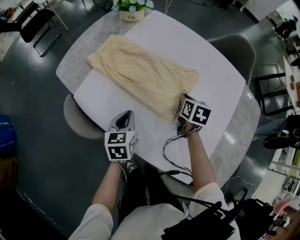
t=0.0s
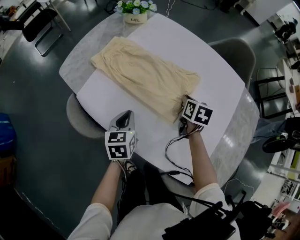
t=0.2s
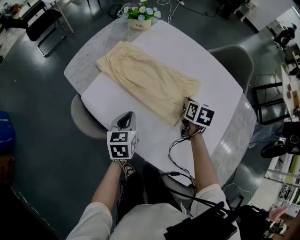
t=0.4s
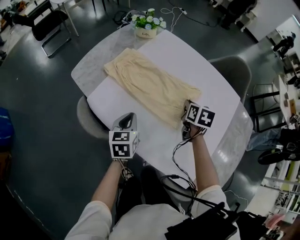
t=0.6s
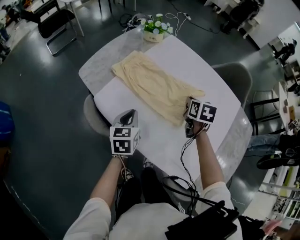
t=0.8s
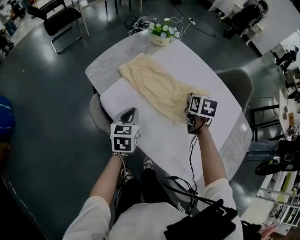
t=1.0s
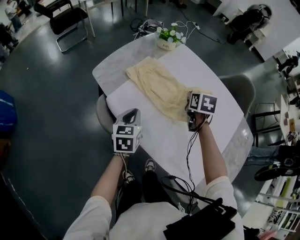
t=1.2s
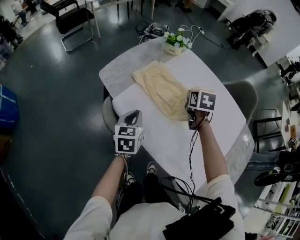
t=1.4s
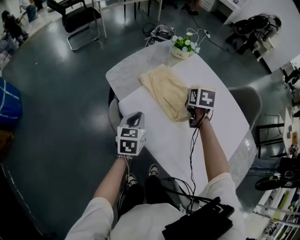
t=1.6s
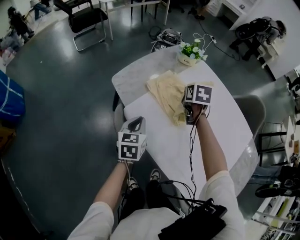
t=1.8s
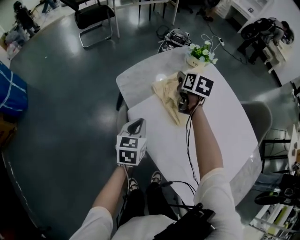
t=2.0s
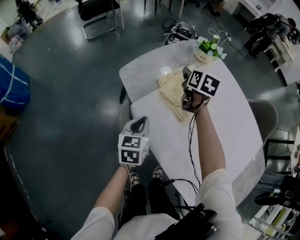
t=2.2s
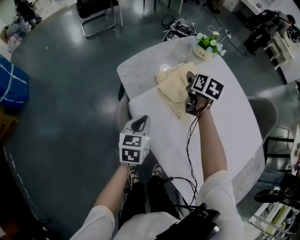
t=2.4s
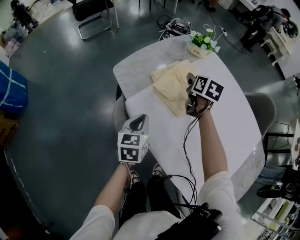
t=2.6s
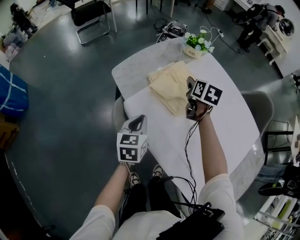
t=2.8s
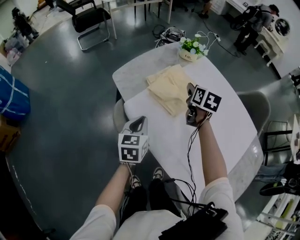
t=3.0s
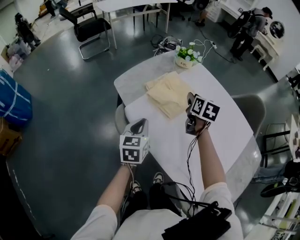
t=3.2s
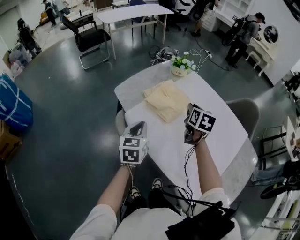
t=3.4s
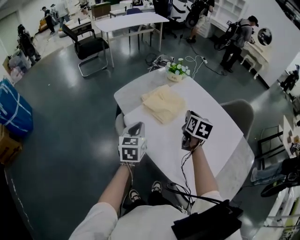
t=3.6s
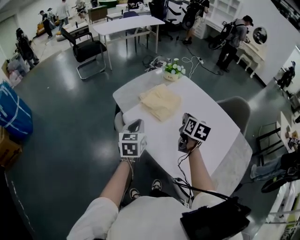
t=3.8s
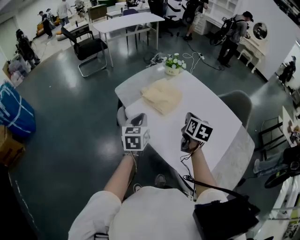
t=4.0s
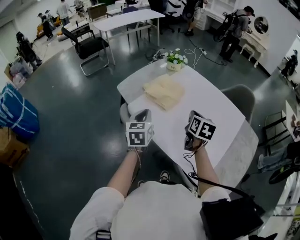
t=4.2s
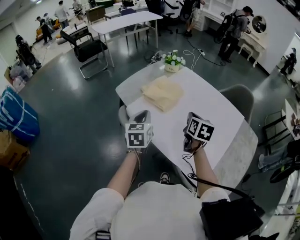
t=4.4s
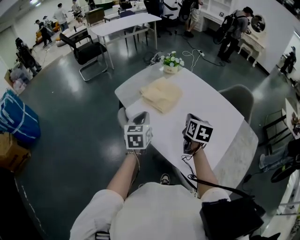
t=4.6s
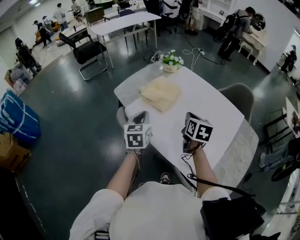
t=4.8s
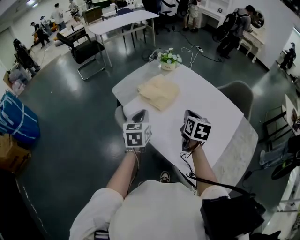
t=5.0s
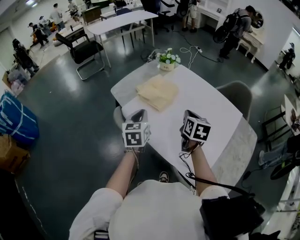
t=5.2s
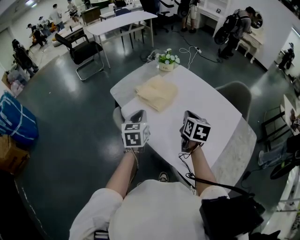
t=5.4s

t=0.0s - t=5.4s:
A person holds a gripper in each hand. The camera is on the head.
t=0.0s - t=1.4s: The left gripper goes about 15 cm to the left and upward, while the right gripper moves to the left, upward and forward, approximately 25 cm, and rotates some 20 degrees.
t=1.4s - t=2.8s: The right gripper goes about 10 cm to the left and forward, and opens.
t=2.8s - t=4.0s: The left gripper travels upward and backward by approximately 20 cm. Meanwhile the right gripper heads backward and upward, covering some 30 cm, and closes up.
t=4.0s - t=5.4s: The grippers stay close to where they were, moving slightly.

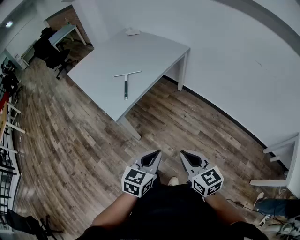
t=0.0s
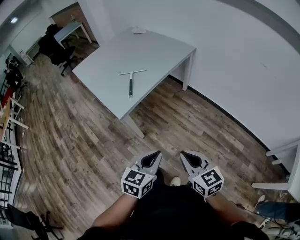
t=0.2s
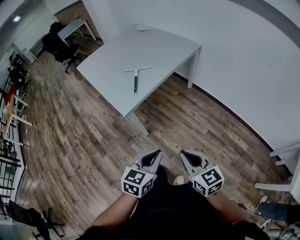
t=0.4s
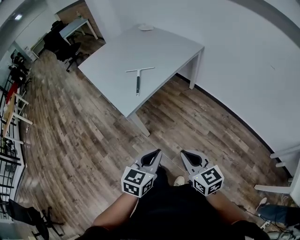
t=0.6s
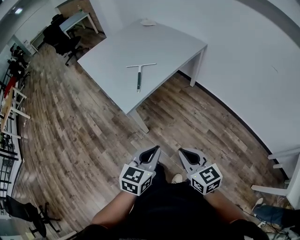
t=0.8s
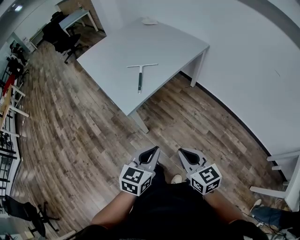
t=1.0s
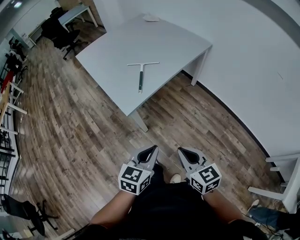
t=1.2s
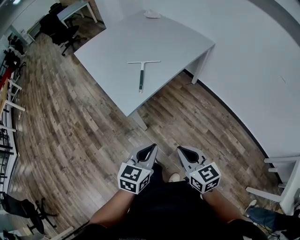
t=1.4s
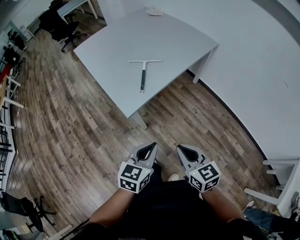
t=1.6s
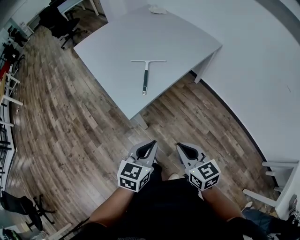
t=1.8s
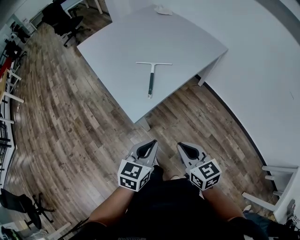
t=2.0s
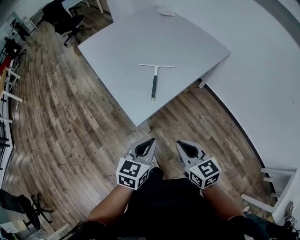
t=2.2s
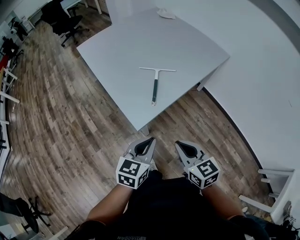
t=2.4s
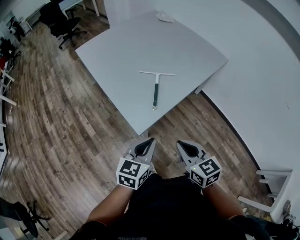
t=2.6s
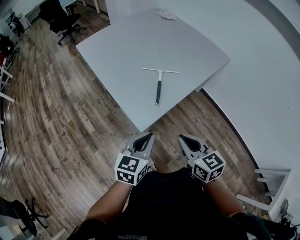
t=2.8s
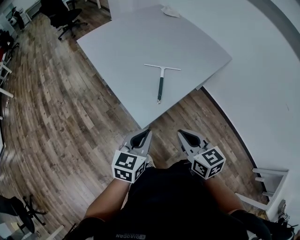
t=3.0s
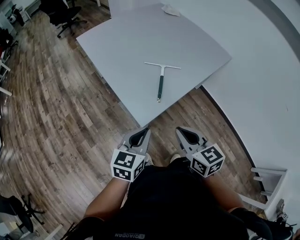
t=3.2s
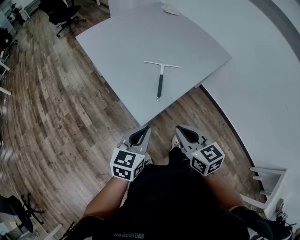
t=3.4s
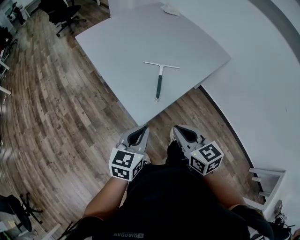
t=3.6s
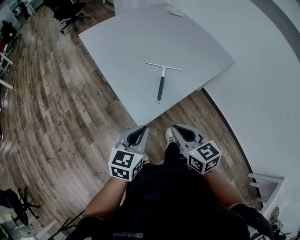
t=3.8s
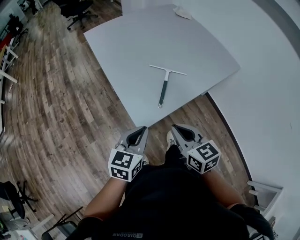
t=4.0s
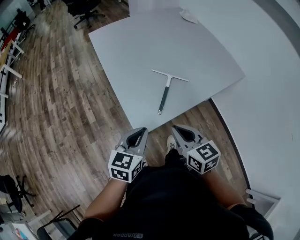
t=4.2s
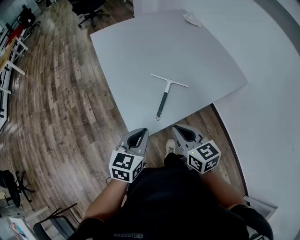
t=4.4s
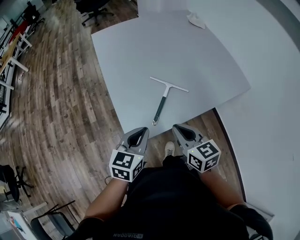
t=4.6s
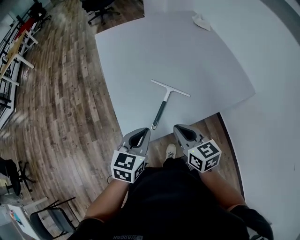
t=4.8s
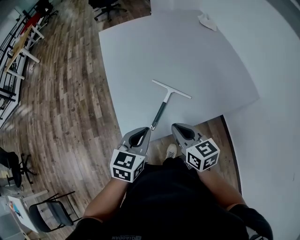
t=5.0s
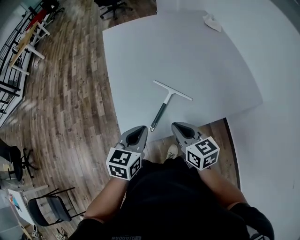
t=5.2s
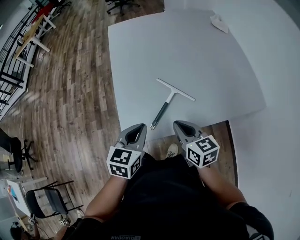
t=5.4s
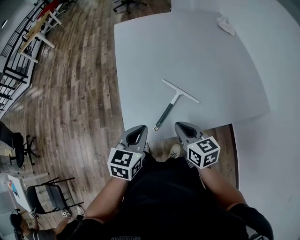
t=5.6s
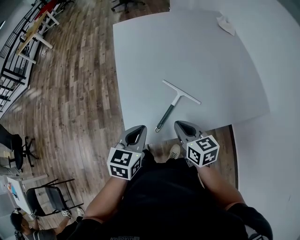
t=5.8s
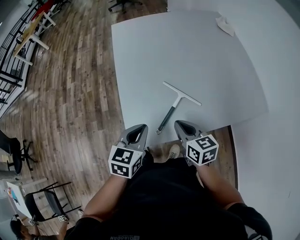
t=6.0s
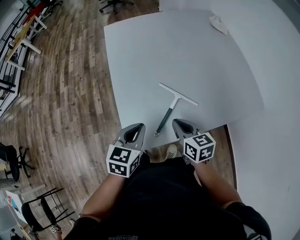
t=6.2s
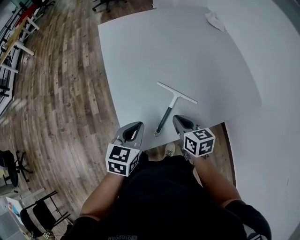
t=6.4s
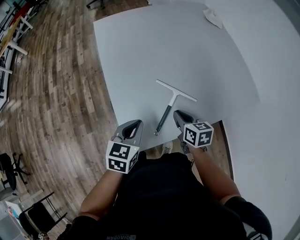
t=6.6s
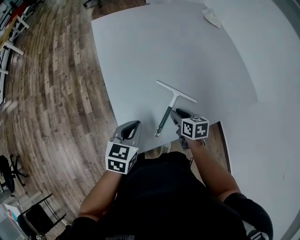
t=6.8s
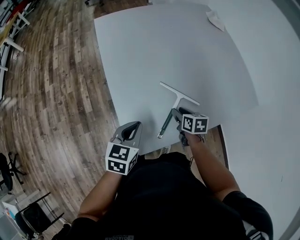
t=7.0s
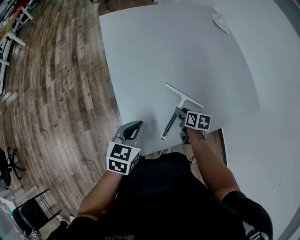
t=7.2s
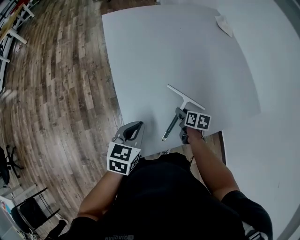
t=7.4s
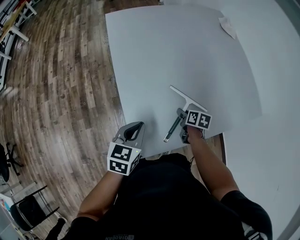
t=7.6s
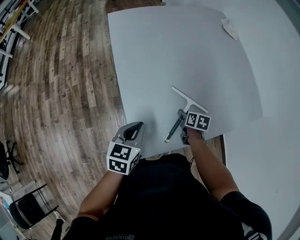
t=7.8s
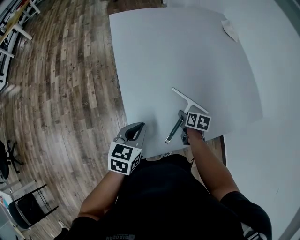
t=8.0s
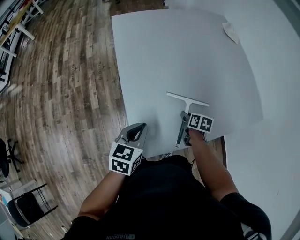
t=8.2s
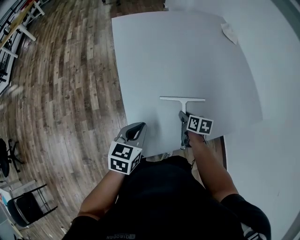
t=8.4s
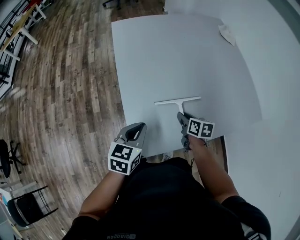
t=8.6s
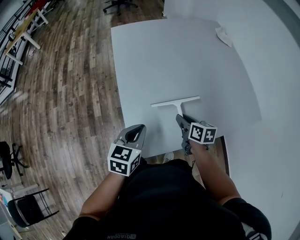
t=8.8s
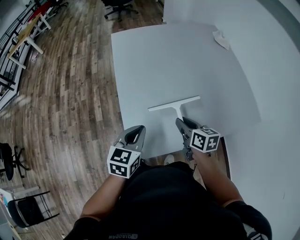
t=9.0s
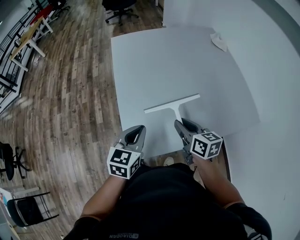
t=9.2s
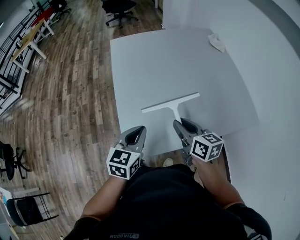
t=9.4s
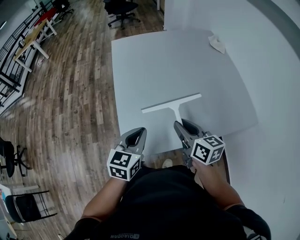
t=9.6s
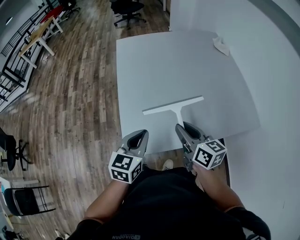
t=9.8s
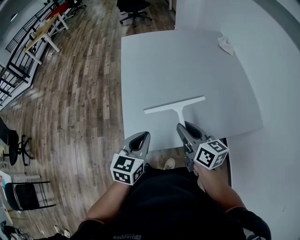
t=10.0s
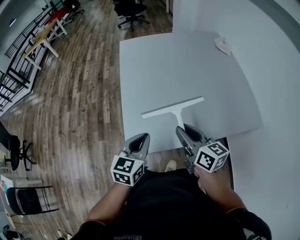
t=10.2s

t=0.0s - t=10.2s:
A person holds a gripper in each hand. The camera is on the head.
t=0.0s - t=1.4s: The two grippers go roughly 15 cm forward and to the left.
t=1.4s - t=3.0s: Both grippers move forward and to the left, approximately 20 cm.
t=3.0s - t=4.4s: Both grippers travel together forward, approximately 10 cm.
t=4.4s - t=5.8s: The left gripper moves forward, approximately 10 cm; the right gripper shifts roughly 15 cm forward, downward and to the right.
t=5.8s - t=7.2s: The right gripper heads downward and forward, covering about 20 cm, rotates about 40 degrees, and opens up. The left gripper moves forward and to the left, some 10 cm.
t=7.2s - t=8.8s: The right gripper goes about 10 cm upward.
t=8.8s - t=10.2s: The left gripper shifts about 10 cm backward and to the right; the right gripper goes roughly 20 cm upward and backward, and turns by about 30 degrees.

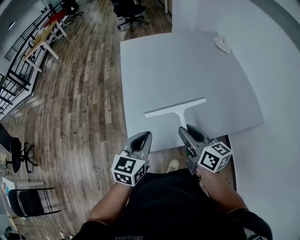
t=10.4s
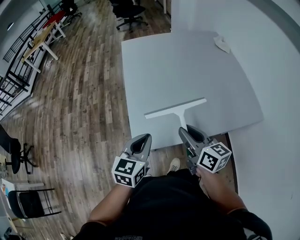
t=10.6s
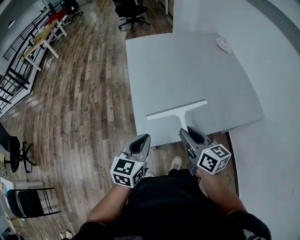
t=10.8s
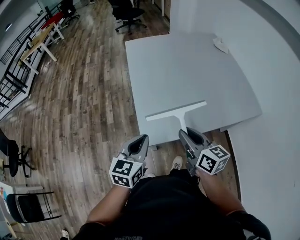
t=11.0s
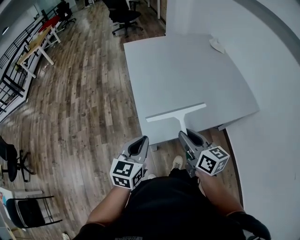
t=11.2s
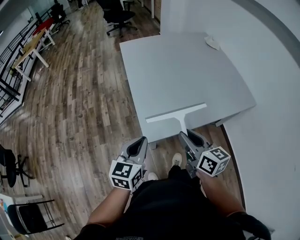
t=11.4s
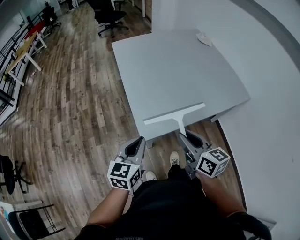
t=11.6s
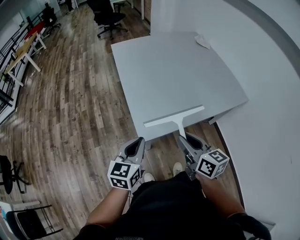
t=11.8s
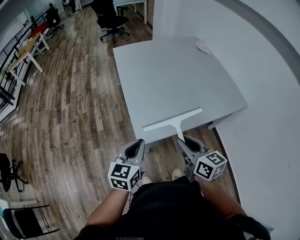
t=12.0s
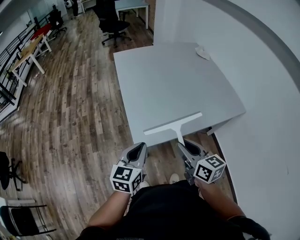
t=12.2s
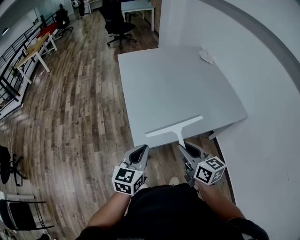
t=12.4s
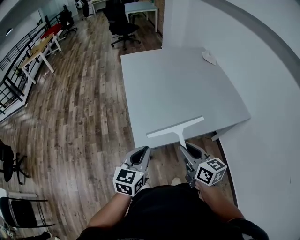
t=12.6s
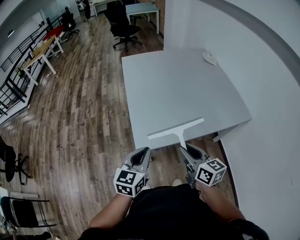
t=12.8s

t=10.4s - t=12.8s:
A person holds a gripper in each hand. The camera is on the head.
t=10.4s - t=11.6s: The right gripper heads backward and to the left, covering about 15 cm. Meanwhile the left gripper travels to the left and backward by some 15 cm.
t=11.6s - t=12.8s: The grippers make only small movements.

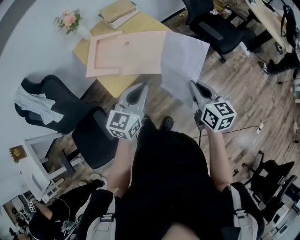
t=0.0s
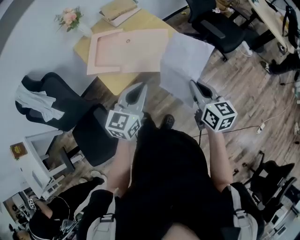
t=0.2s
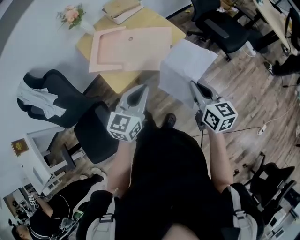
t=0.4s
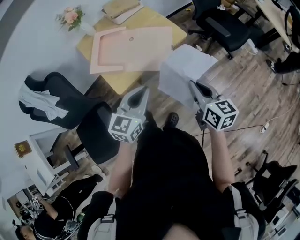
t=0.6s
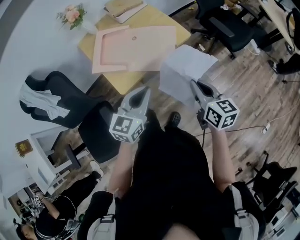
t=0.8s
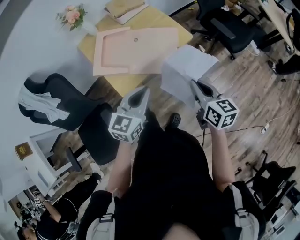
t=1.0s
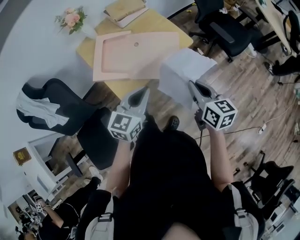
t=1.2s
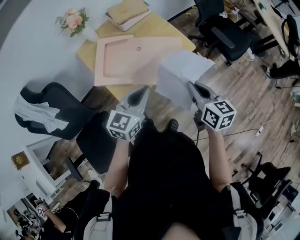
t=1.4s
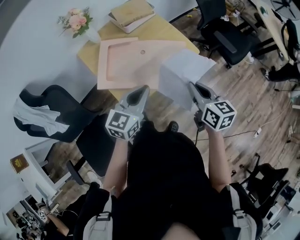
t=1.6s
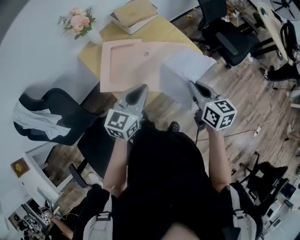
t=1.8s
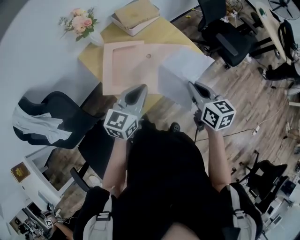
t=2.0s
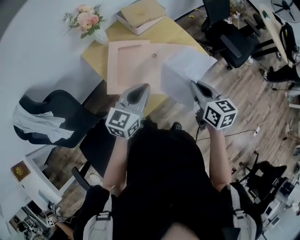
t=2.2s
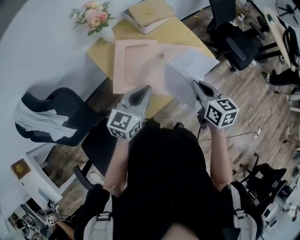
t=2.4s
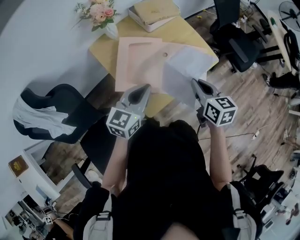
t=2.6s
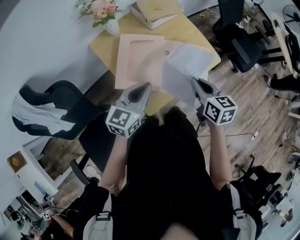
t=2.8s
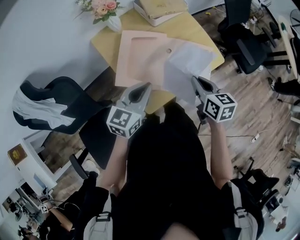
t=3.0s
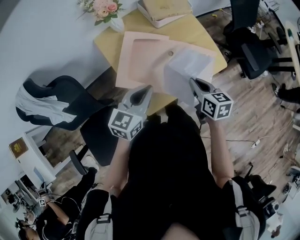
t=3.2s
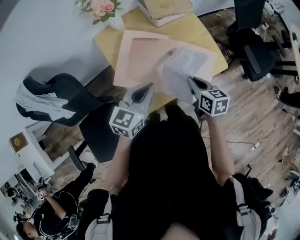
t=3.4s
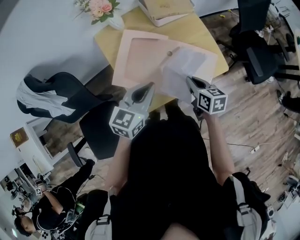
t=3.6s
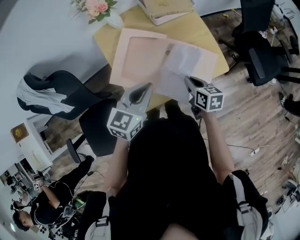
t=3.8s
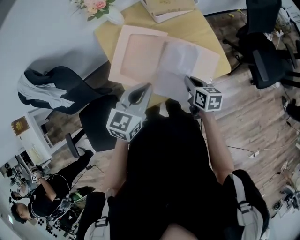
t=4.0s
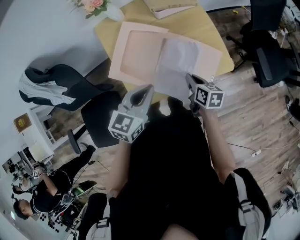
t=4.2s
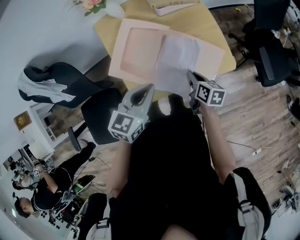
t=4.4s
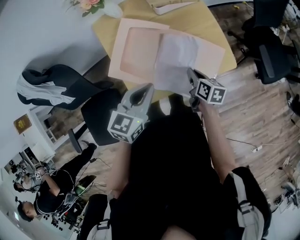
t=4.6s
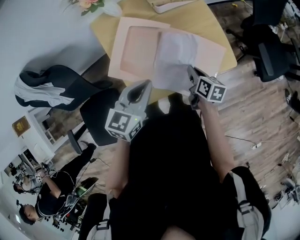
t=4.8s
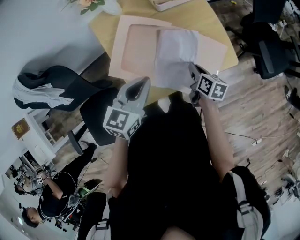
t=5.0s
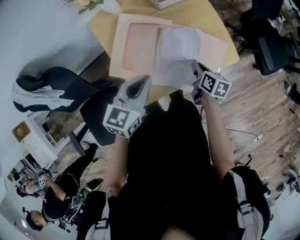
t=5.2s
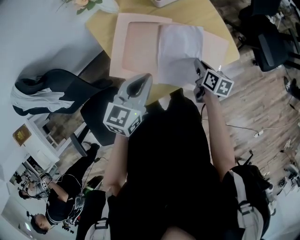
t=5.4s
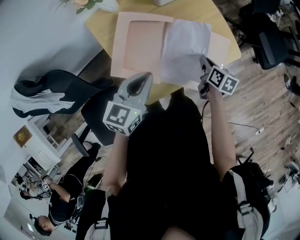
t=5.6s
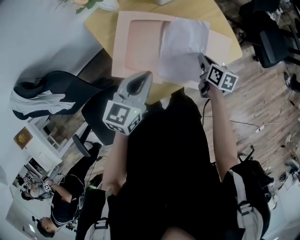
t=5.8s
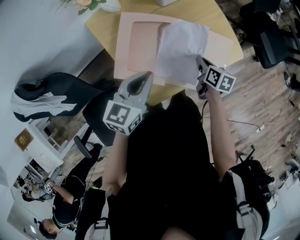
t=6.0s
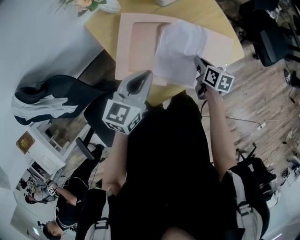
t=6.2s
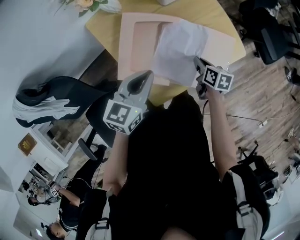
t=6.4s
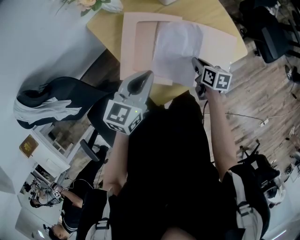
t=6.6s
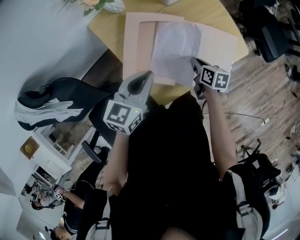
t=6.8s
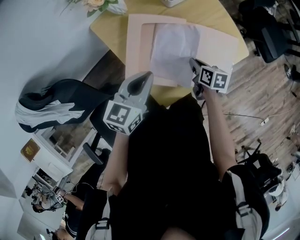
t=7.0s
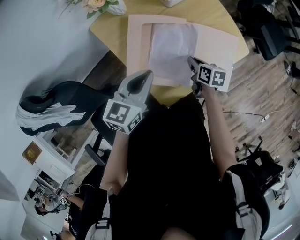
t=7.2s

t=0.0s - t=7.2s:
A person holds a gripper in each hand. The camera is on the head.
t=0.0s - t=1.4s: The two grippers go some 15 cm forward and to the left.
t=1.4s - t=2.8s: The two grippers go about 20 cm to the left and forward.
t=2.8s - t=4.4s: The left gripper goes approximately 10 cm to the right, and changes its angle by about 20 degrees; the right gripper moves downward, forward and to the right, about 20 cm, and turns by roughly 20 degrees.
t=4.4s - t=5.8s: The right gripper ends up roughly 5 cm from where it was; the left gripper goes roughly 10 cm to the left.
t=5.8s - t=7.2s: The right gripper moves to the left, some 10 cm, while the left gripper goes approximately 5 cm to the left.
